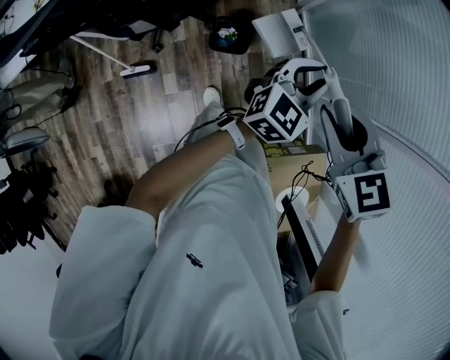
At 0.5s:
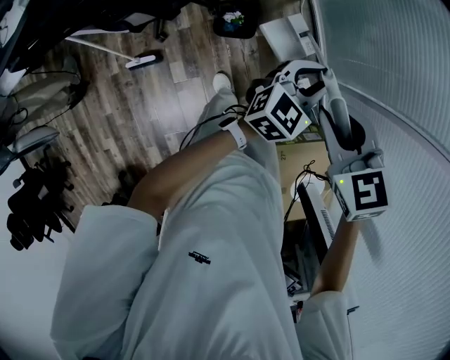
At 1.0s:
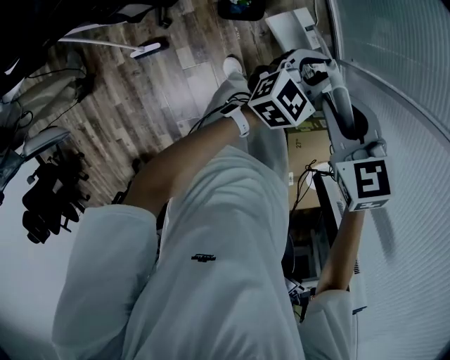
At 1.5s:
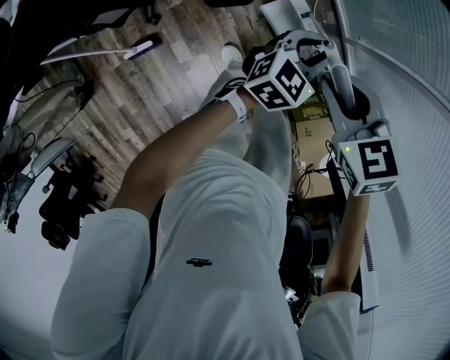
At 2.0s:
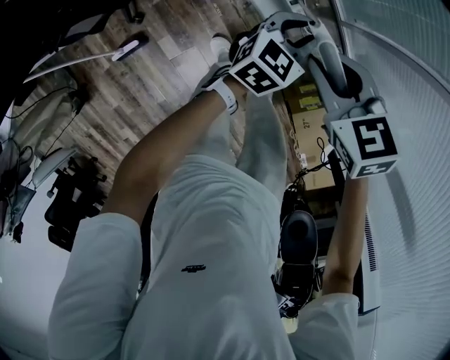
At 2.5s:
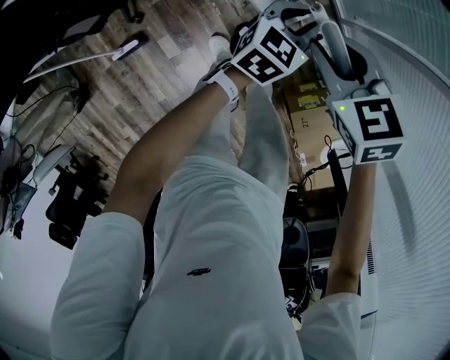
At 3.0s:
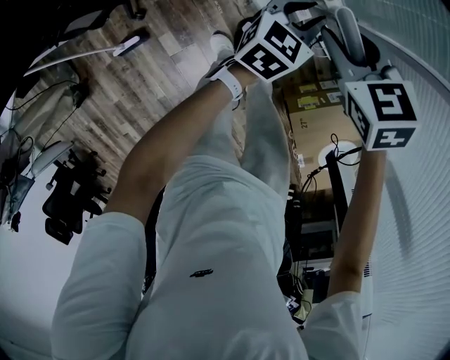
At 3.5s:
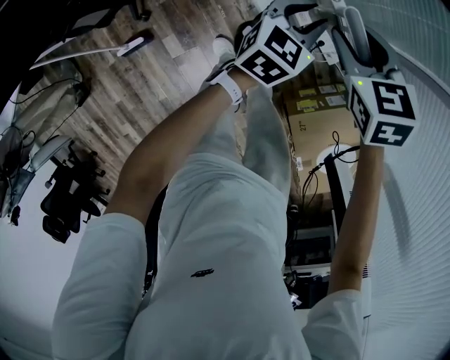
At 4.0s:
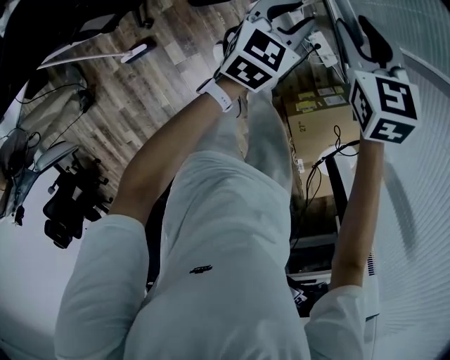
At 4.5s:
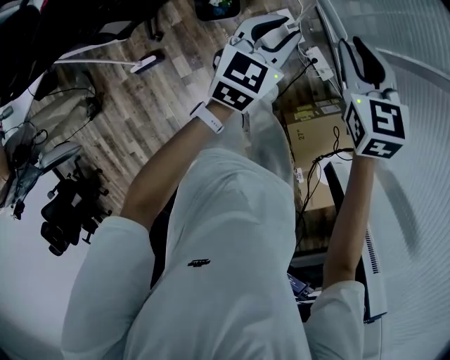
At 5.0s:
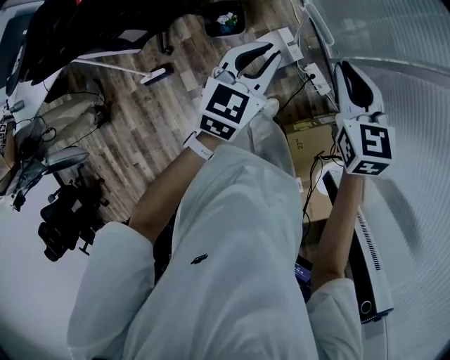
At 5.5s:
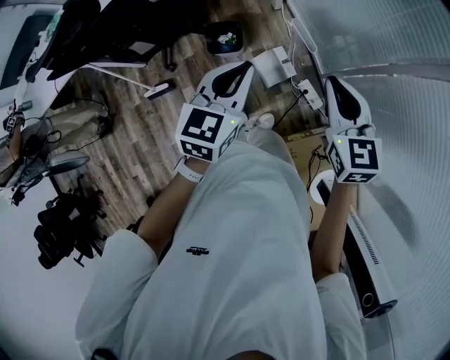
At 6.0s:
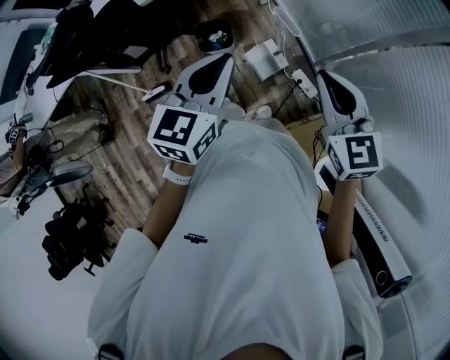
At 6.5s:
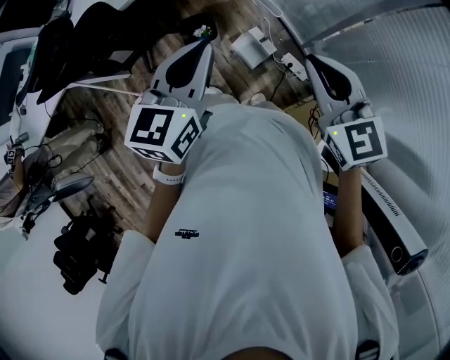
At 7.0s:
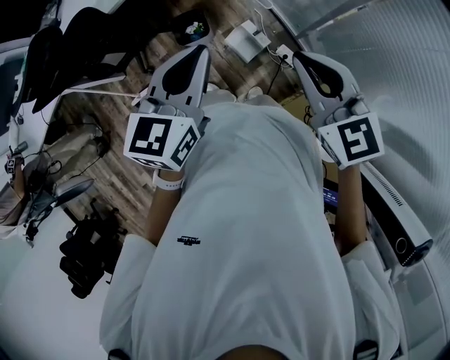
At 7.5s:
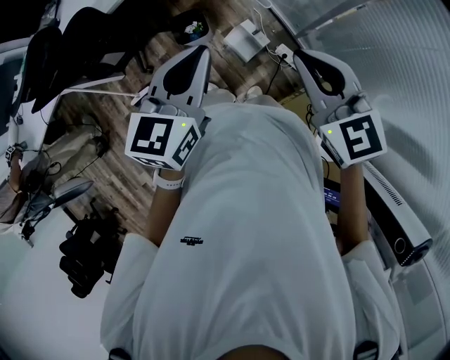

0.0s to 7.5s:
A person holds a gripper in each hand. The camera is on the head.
0.0s to 2.0s: Both grippers travel together downward, about 25 cm. The right gripper changes its angle by roughly 30 degrees, while the left gripper swivels some 30 degrees.
2.0s to 4.0s: The right gripper is displaced to the right and forward by some 10 cm, and opens its fingers. Meanwhile the left gripper goes approximately 10 cm upward.
4.0s to 5.5s: Both grippers travel together upward and backward, approximately 25 cm. The right gripper closes its fingers, while the left gripper closes.
5.5s to 7.5s: The left gripper goes approximately 10 cm upward and backward; the right gripper moves backward and upward, about 10 cm.

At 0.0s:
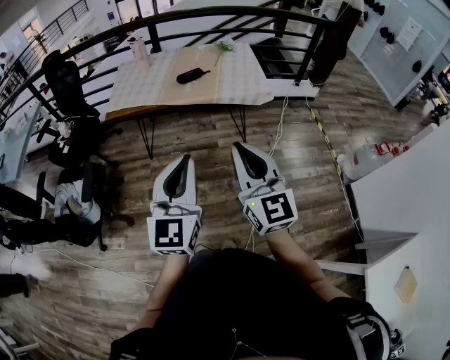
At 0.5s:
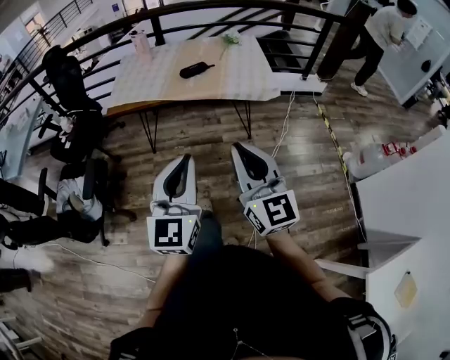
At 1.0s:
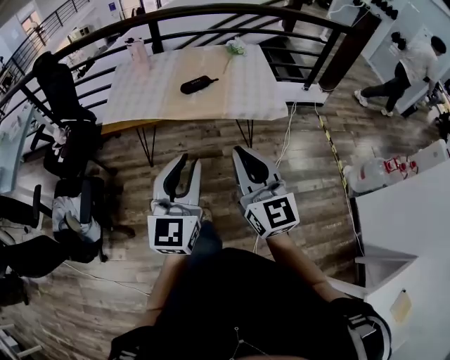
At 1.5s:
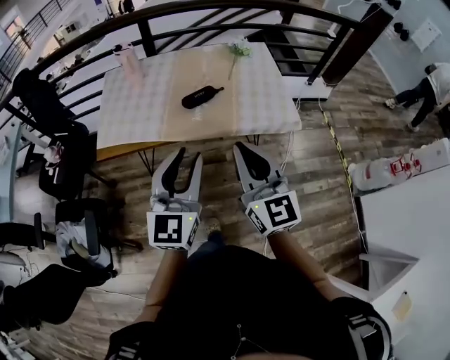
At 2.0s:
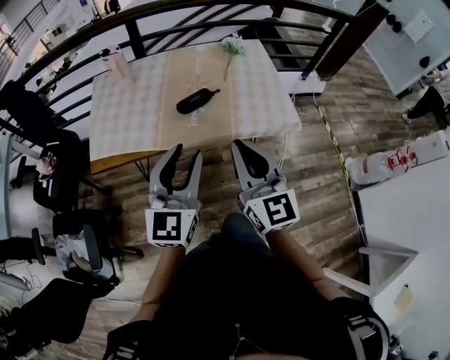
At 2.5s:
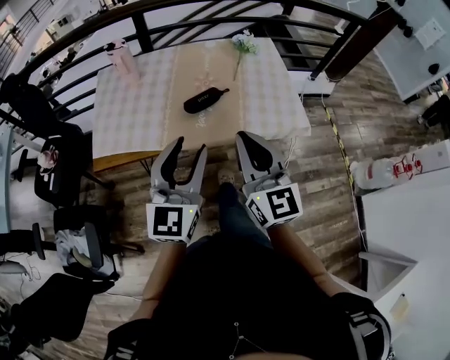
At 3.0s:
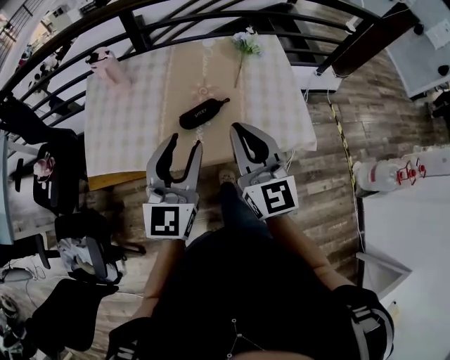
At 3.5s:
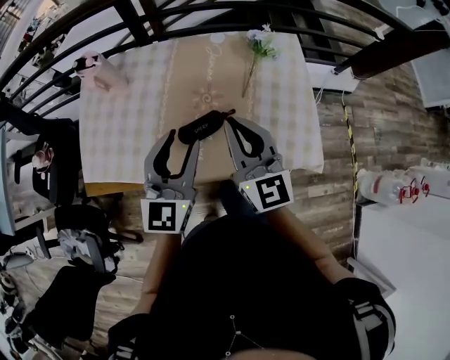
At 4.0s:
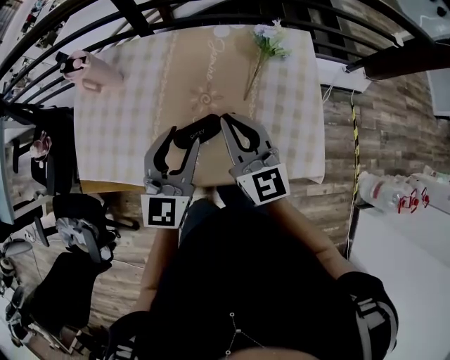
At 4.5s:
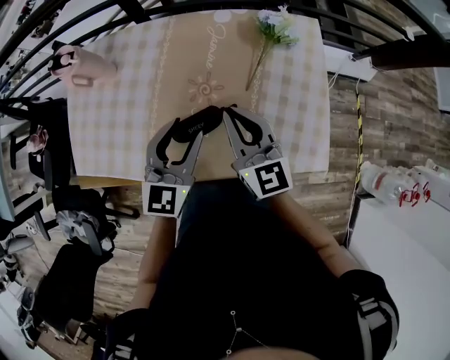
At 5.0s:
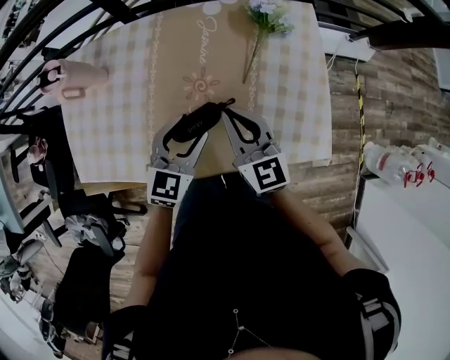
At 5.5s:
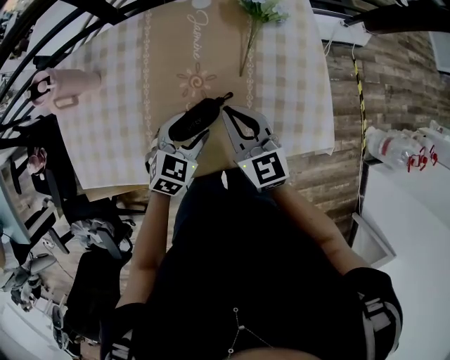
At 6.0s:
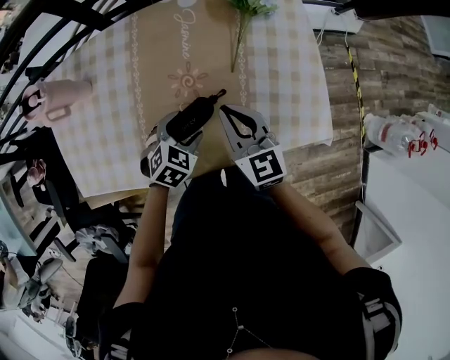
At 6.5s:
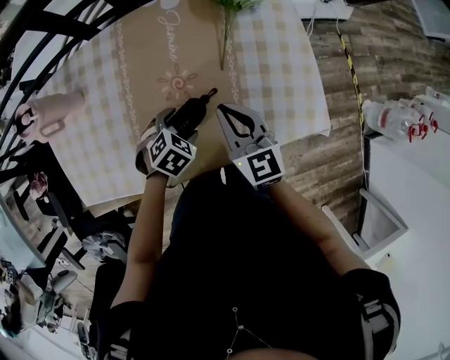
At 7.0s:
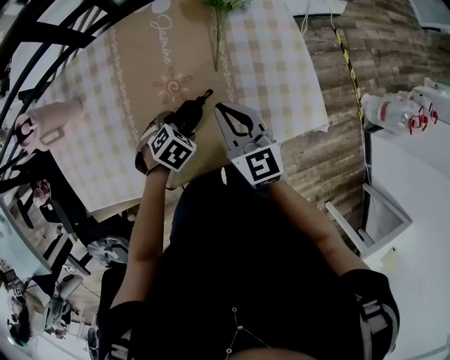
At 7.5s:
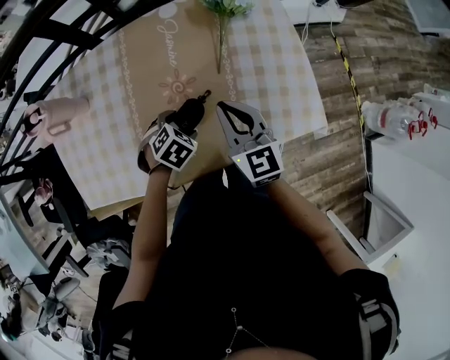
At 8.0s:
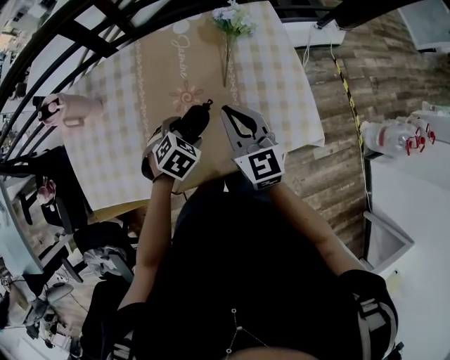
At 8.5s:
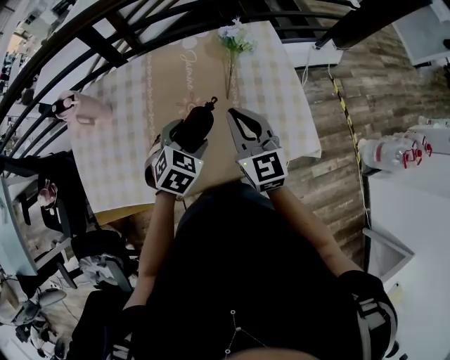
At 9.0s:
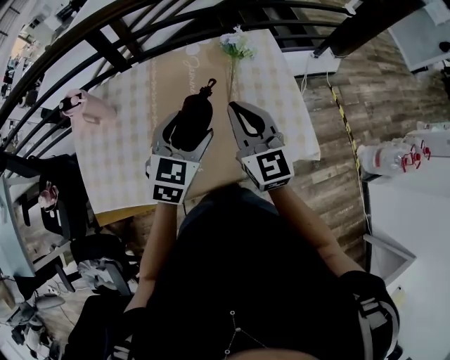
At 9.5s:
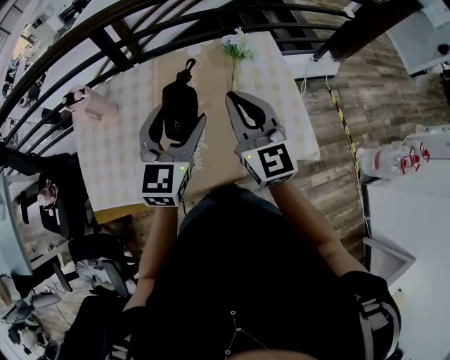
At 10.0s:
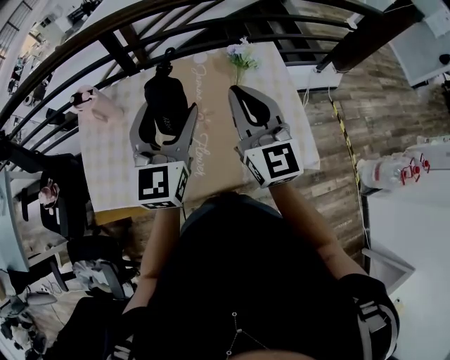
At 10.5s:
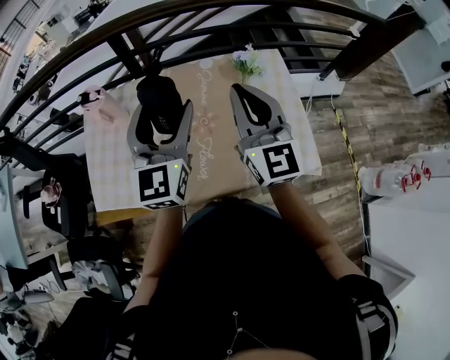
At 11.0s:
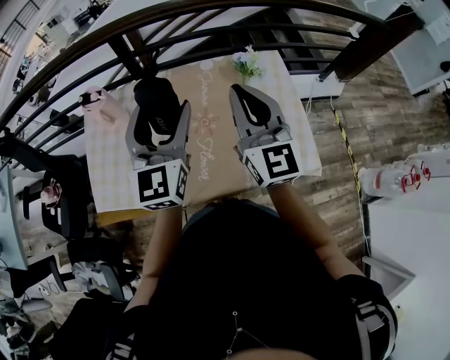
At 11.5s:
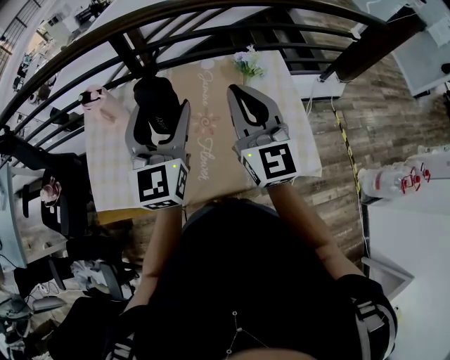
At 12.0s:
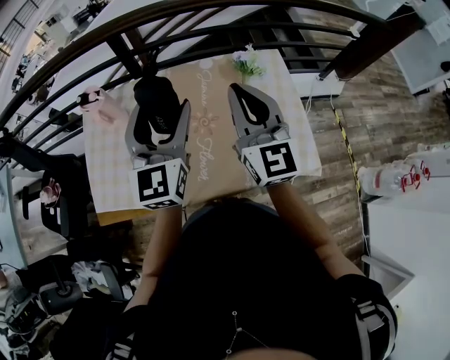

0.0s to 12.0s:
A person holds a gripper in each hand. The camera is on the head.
0.0s to 2.0s: Both grippers move forward, about 40 cm. The left gripper opens up.
2.0s to 4.0s: Both grippers move forward, roughly 35 cm.
4.0s to 6.0s: The right gripper moves downward, about 10 cm; the left gripper heads downward, covering approximately 20 cm, tips its fingers downward by approximately 50 degrees, and opens up.
6.0s to 8.0s: The right gripper shifts some 5 cm upward.
8.0s to 10.0s: The right gripper is displaced upward by some 20 cm, and swivels roughly 20 degrees. Meanwhile the left gripper is displaced upward by some 30 cm, and angles its fingers upward, by about 70 degrees.
10.0s to 12.0s: The grippers move only a little.

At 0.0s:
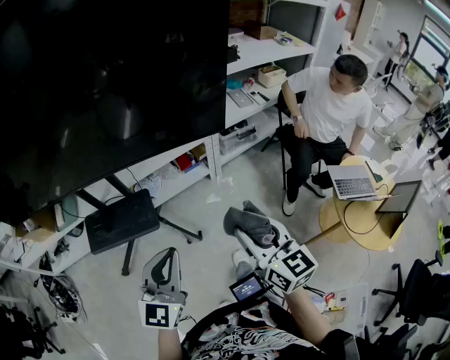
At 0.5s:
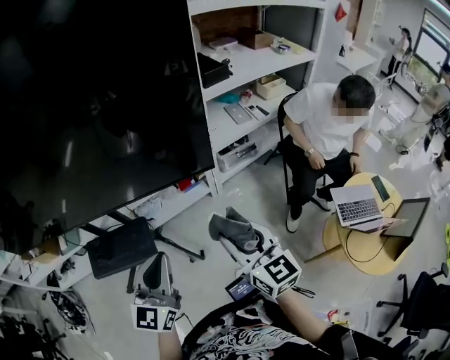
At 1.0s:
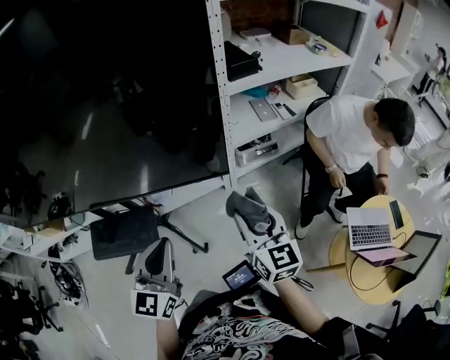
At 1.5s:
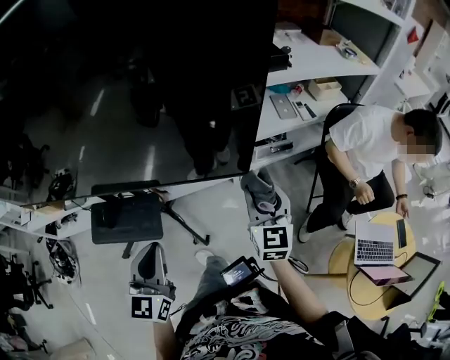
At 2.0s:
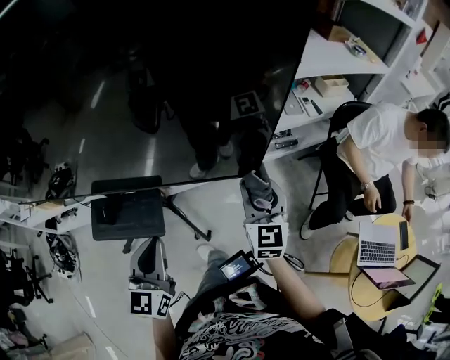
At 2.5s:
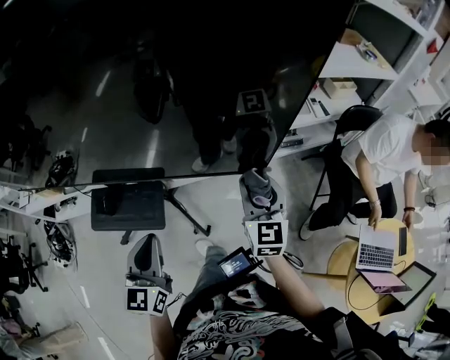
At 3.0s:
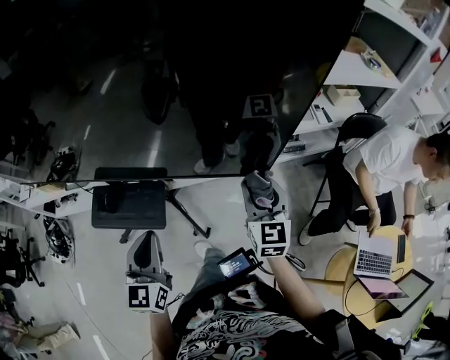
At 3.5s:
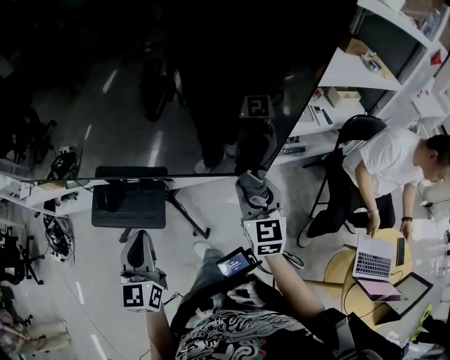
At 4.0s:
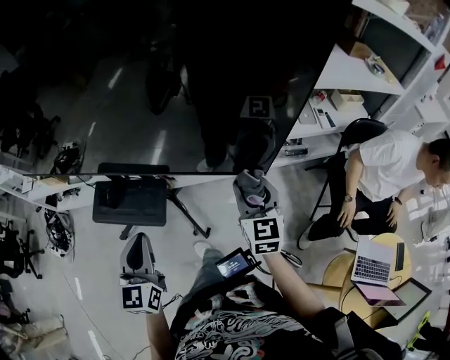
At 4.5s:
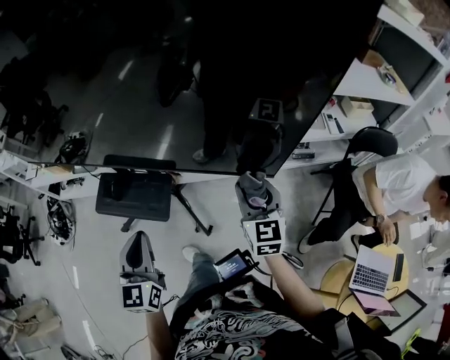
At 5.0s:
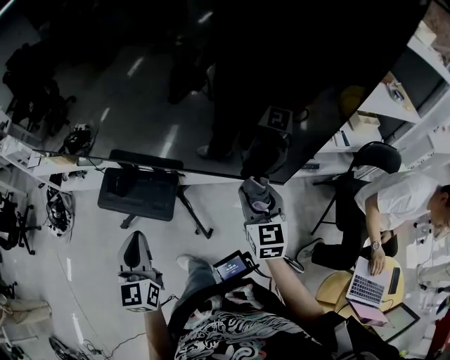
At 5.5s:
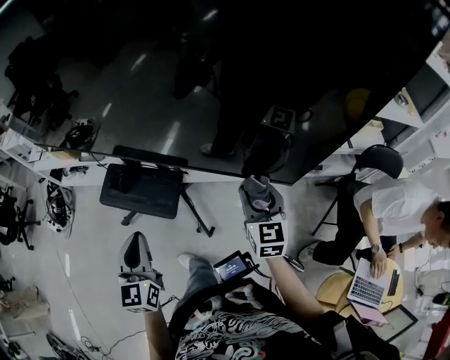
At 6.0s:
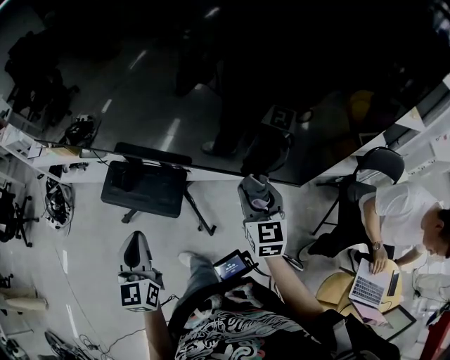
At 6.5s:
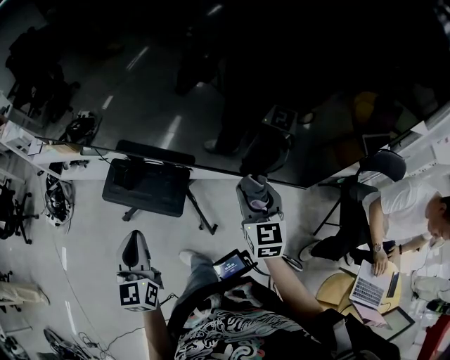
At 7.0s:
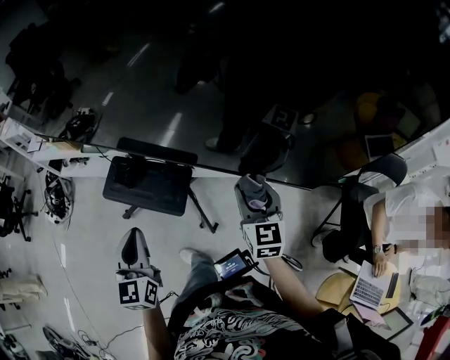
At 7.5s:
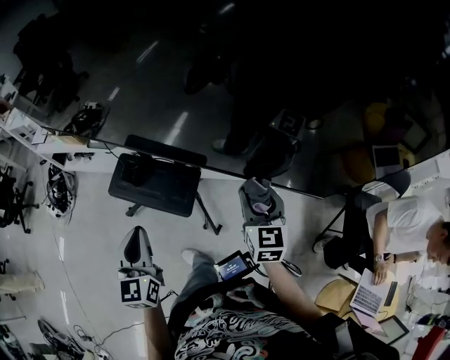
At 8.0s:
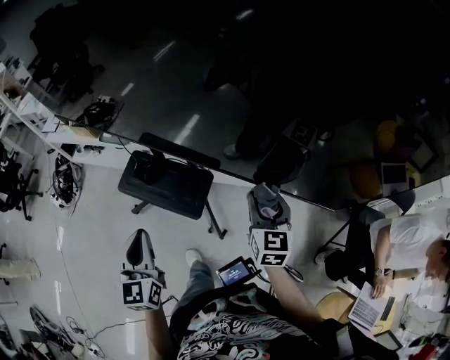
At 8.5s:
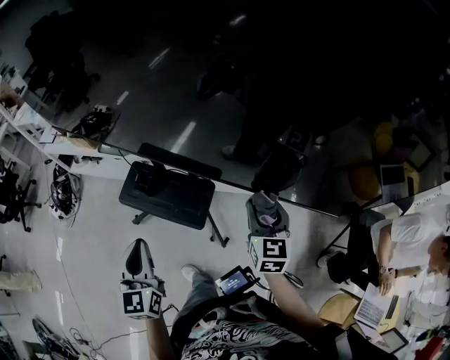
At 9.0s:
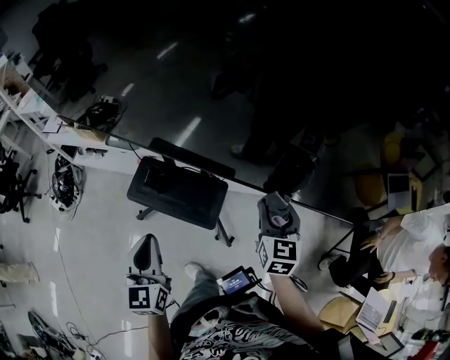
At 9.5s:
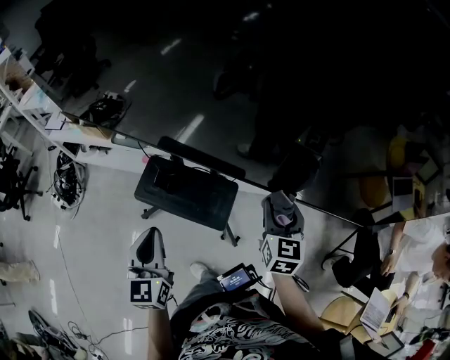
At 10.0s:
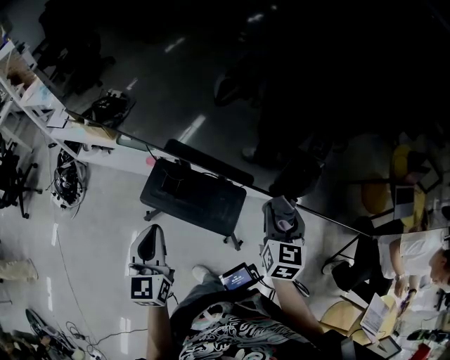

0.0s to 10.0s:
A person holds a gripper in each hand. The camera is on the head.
0.0s to 2.0s: The left gripper heads forward, covering approximately 20 cm, and swivels about 30 degrees. The right gripper travels forward by some 35 cm.
2.0s to 4.0s: The left gripper heads to the left, covering approximately 5 cm.
4.0s to 6.0s: The grippers both shift to the left by roughly 10 cm.
6.0s to 8.0s: Both grippers travel together to the left, some 10 cm.
8.0s to 10.0s: Both grippers move to the left and forward, roughly 15 cm.
